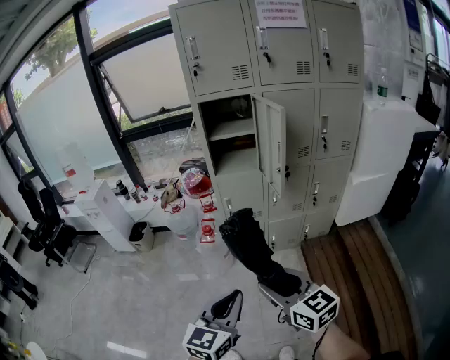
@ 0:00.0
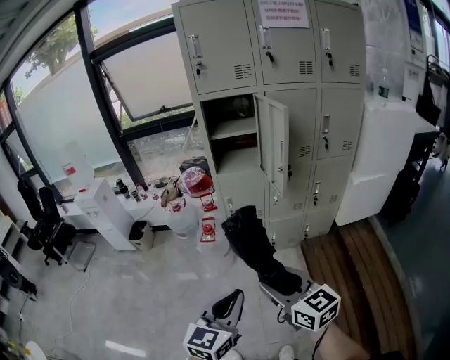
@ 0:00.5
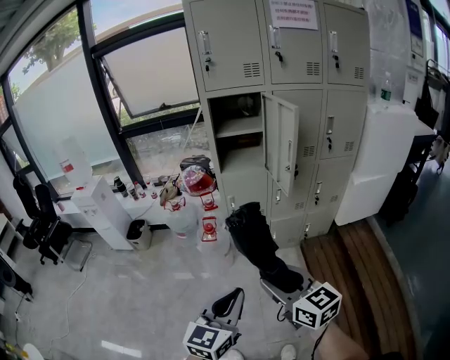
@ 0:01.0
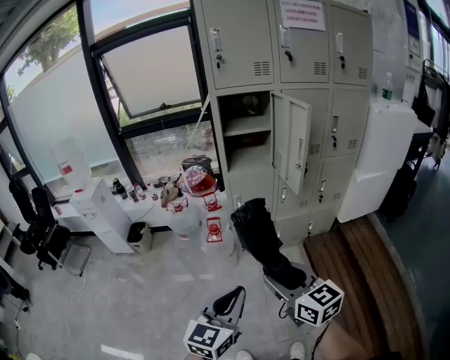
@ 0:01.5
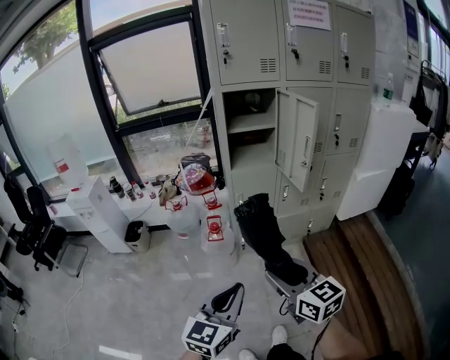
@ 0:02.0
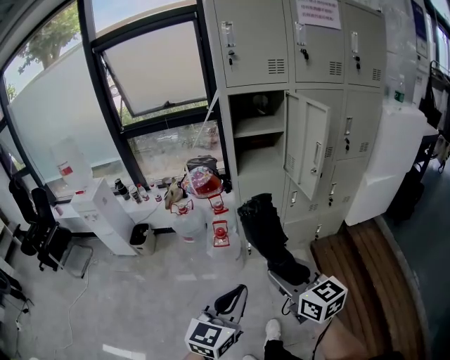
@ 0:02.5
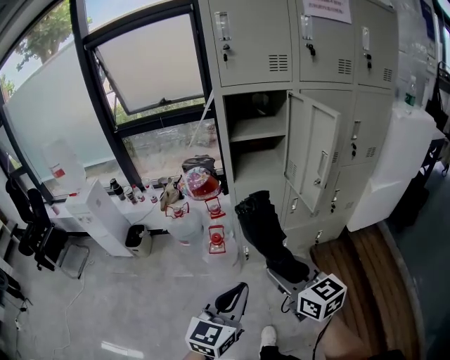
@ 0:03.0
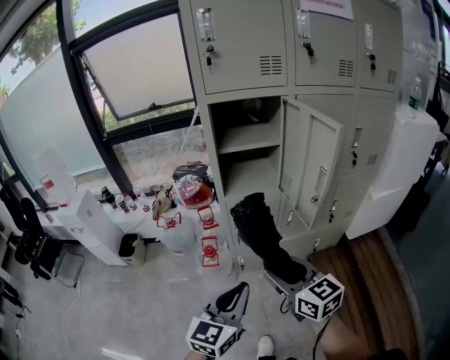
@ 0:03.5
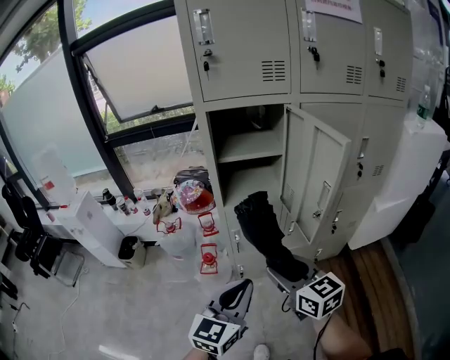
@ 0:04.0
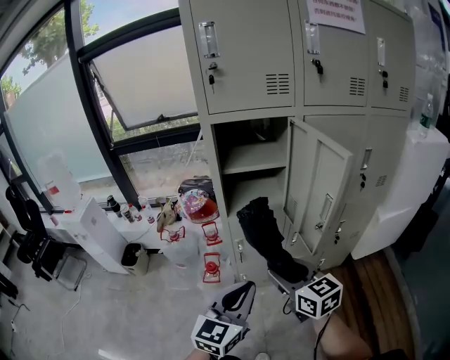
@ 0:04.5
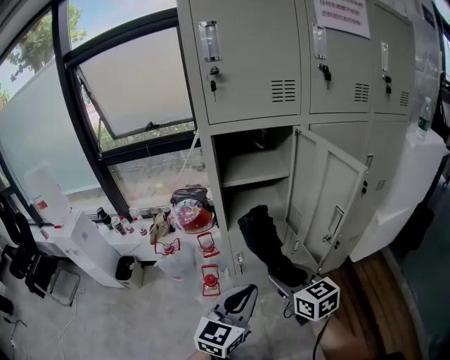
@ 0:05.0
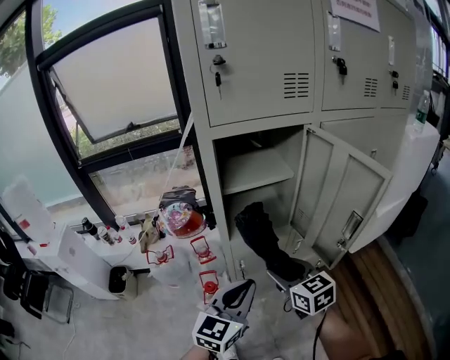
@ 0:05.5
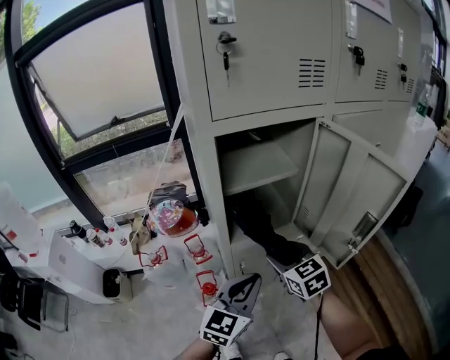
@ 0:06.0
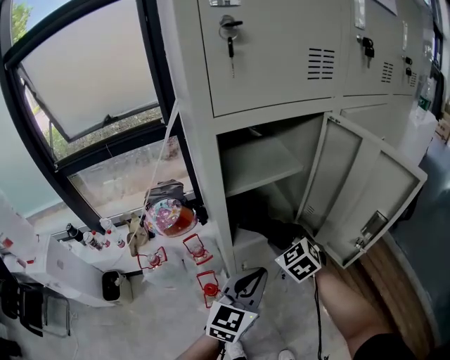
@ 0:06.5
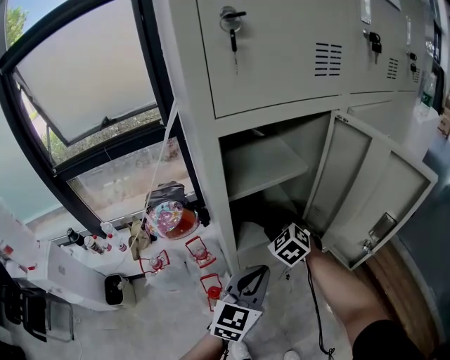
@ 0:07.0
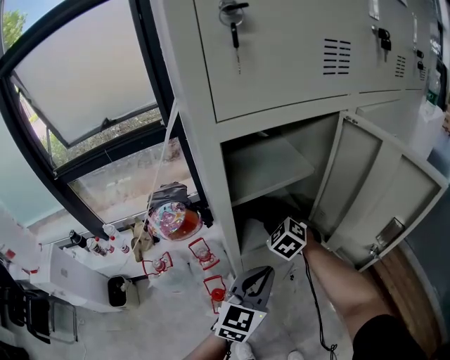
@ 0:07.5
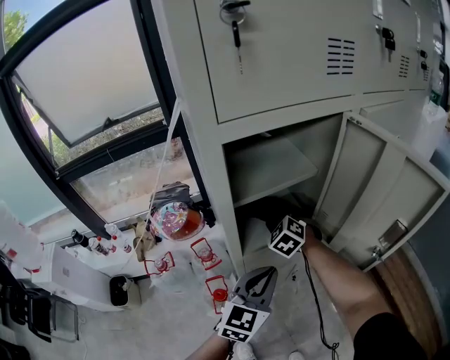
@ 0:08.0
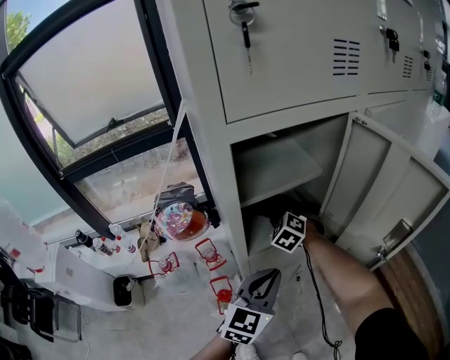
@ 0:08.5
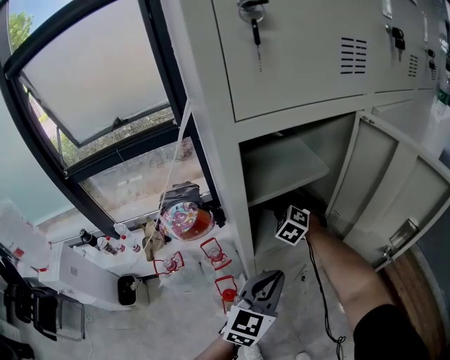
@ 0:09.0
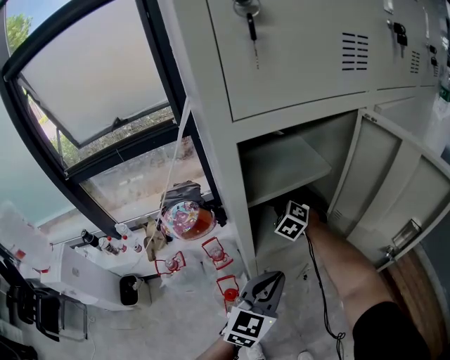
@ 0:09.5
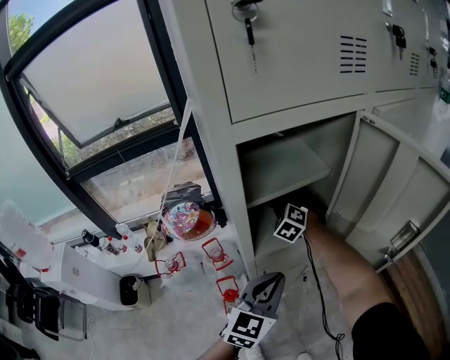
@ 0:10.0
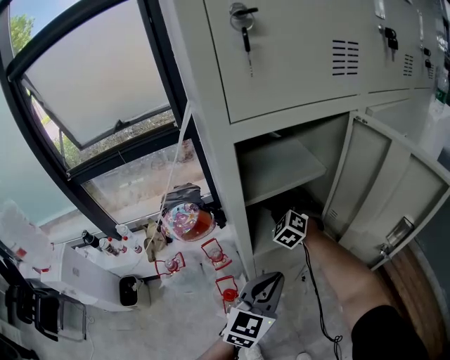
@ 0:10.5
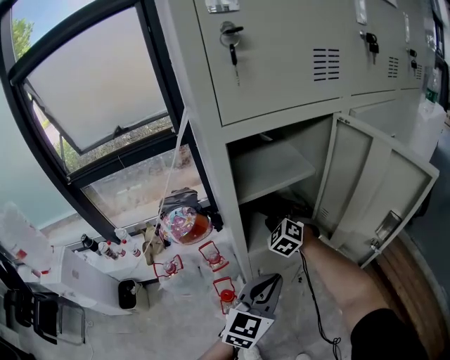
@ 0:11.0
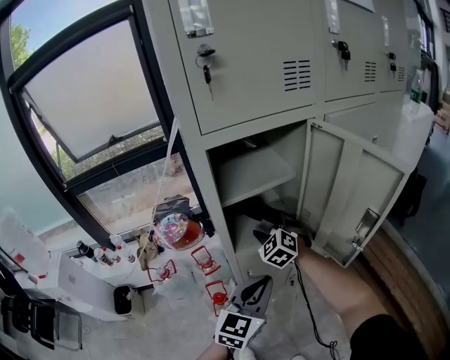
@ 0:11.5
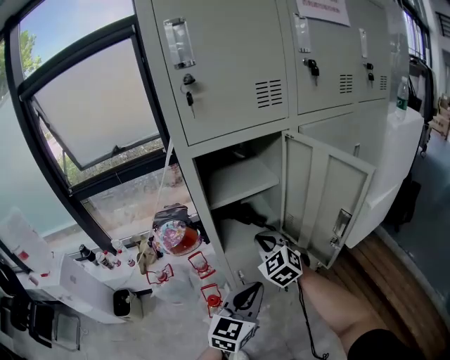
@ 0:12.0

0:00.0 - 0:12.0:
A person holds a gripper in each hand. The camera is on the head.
0:00.0 - 0:02.0: Both grippers travel together to the left, about 15 cm.
0:02.0 - 0:04.0: Both grippers travel together forward, approximately 25 cm.
0:04.0 - 0:06.0: Both grippers travel together forward, roughly 20 cm. The right gripper swivels approximately 20 degrees.
0:06.0 - 0:08.0: The right gripper travels forward by roughly 20 cm, and rotates approximately 40 degrees. The left gripper is displaced forward by approximately 5 cm.
0:08.0 - 0:10.0: The right gripper goes roughly 5 cm forward.
0:10.0 - 0:12.0: The left gripper heads backward and to the right, covering roughly 10 cm. The right gripper moves backward and upward, some 20 cm, rotates some 30 degrees, and closes its fingers.

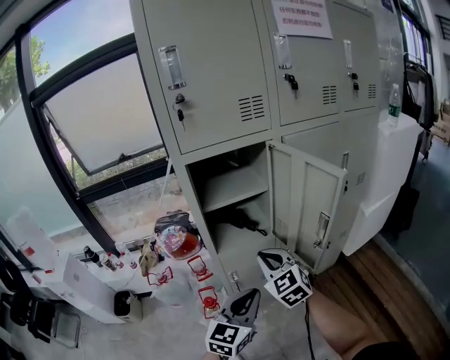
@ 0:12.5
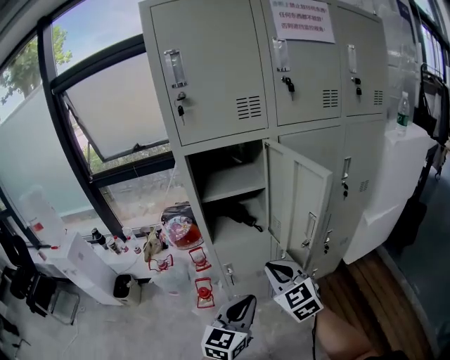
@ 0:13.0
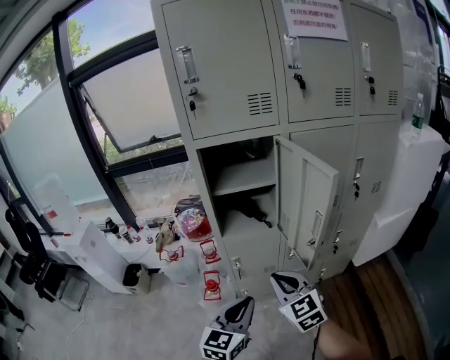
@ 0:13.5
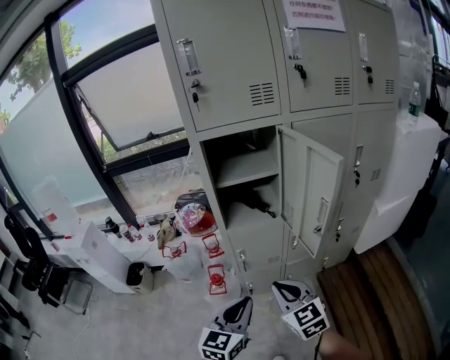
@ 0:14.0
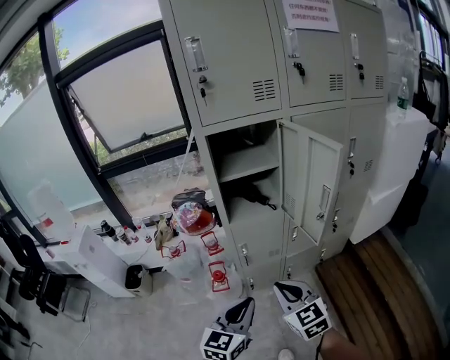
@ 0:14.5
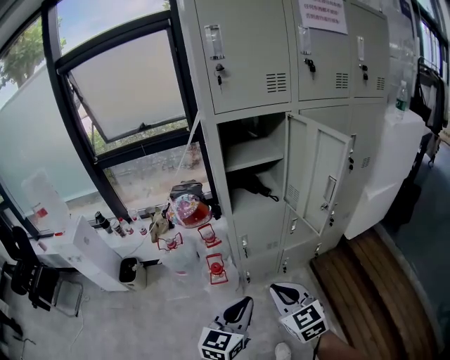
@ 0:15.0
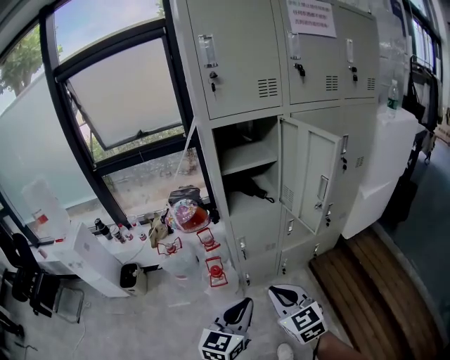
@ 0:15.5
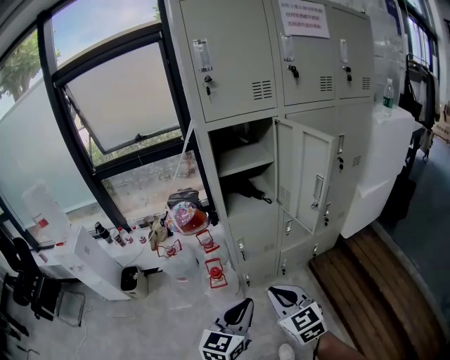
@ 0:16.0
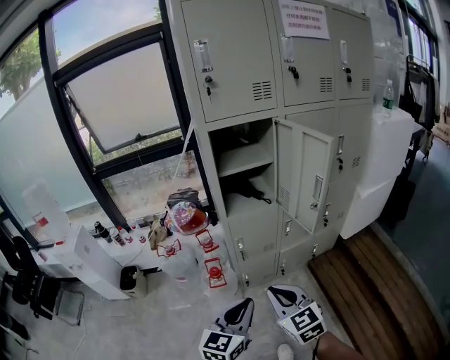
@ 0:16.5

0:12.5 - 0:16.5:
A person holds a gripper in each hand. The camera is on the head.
0:12.5 - 0:14.5: The right gripper moves backward, roughly 20 cm; the left gripper shifts some 15 cm backward.
0:14.5 - 0:16.5: Both grippers travel together backward, approximately 5 cm.

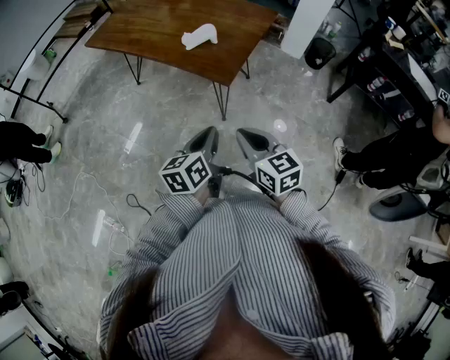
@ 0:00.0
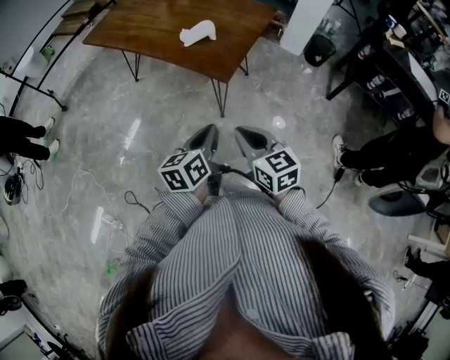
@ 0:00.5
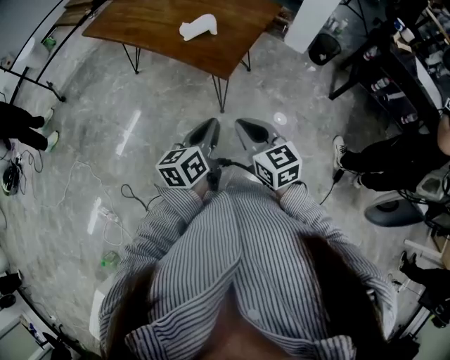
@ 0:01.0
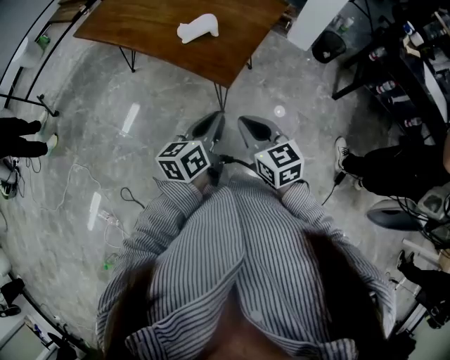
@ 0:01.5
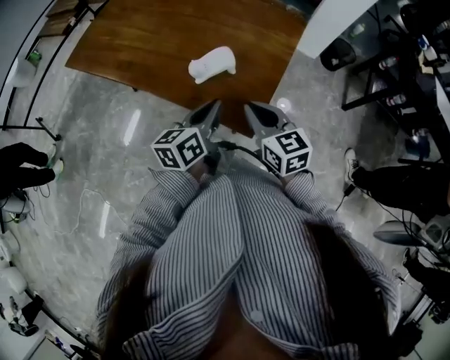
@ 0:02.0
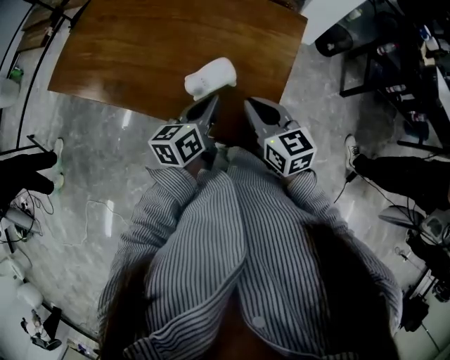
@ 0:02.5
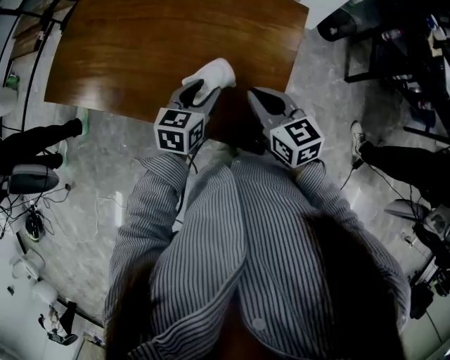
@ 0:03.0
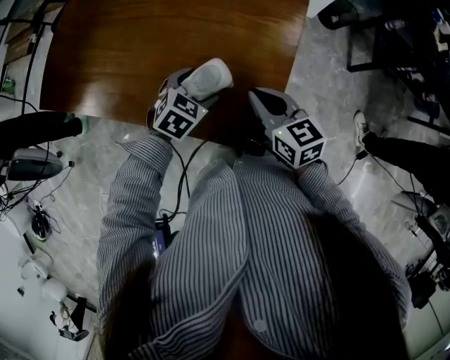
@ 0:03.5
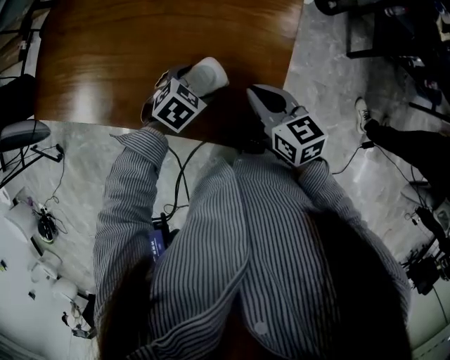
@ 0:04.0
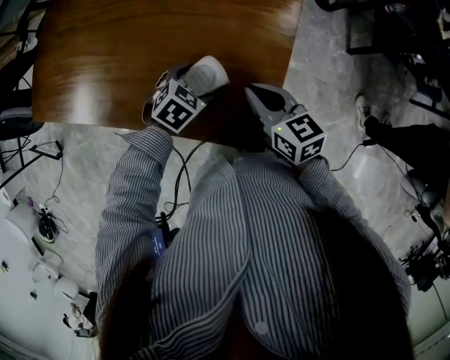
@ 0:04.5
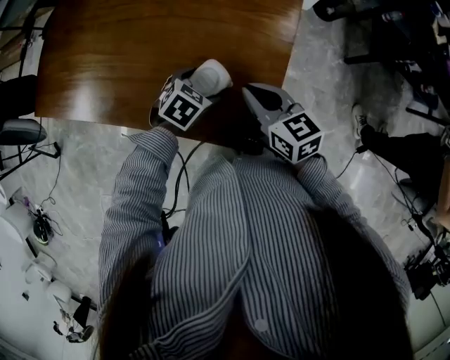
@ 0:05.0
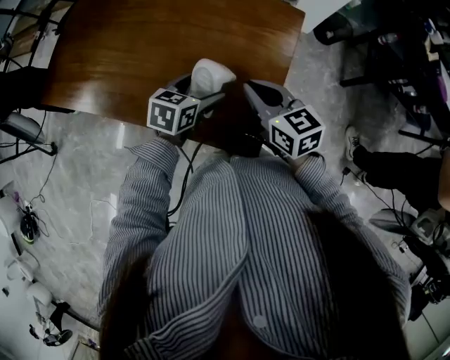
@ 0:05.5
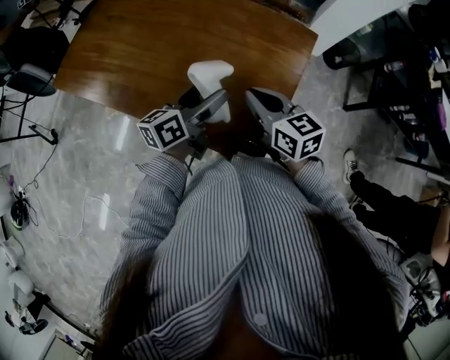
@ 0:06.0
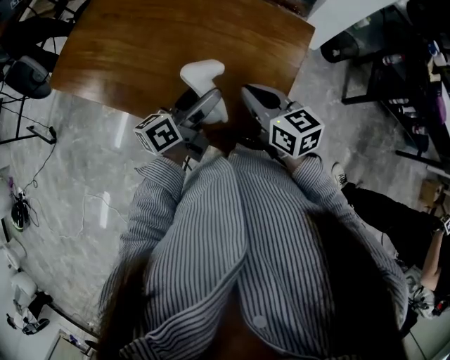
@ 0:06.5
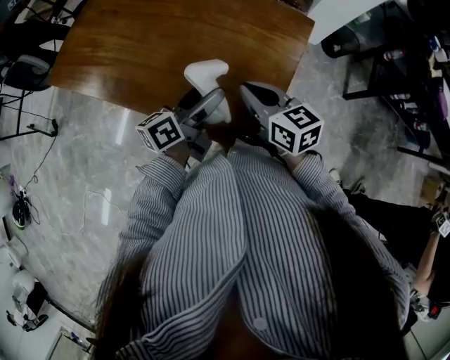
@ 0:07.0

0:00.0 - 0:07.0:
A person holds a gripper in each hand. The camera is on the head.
0:00.0 - 0:02.0: The grippers both shift forward by about 35 cm.
0:02.0 - 0:03.5: The right gripper travels forward by approximately 15 cm; the left gripper heads forward and downward, covering some 20 cm, tilts its fingers some 40 degrees downward, and opens its fingers.
0:03.5 - 0:05.0: The grippers make only small movements.
0:05.0 - 0:07.0: The right gripper ends up about 5 cm from where it was. The left gripper goes about 15 cm upward, and points its fingers about 60 degrees further upward.

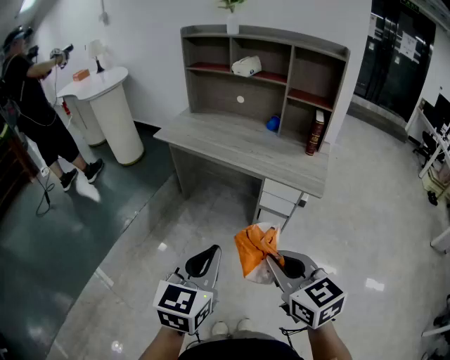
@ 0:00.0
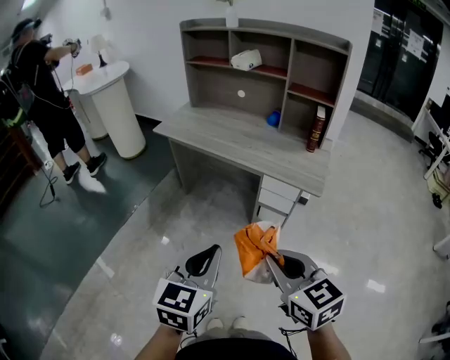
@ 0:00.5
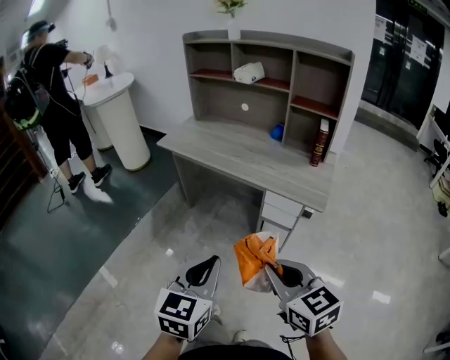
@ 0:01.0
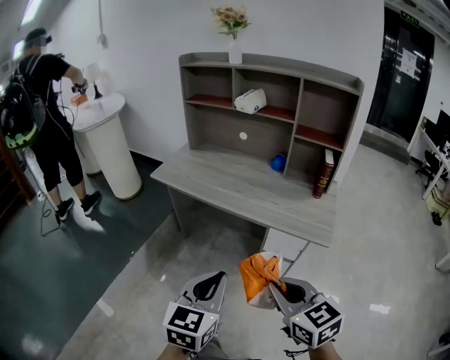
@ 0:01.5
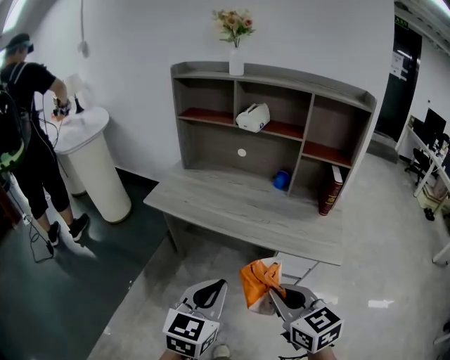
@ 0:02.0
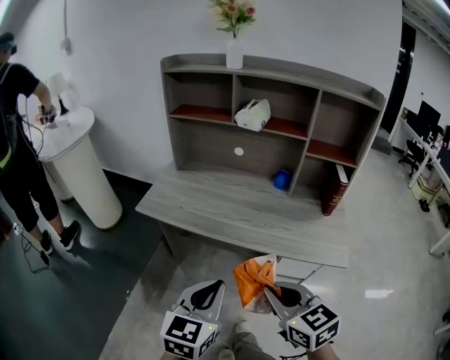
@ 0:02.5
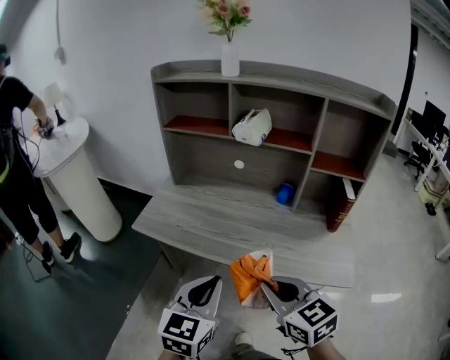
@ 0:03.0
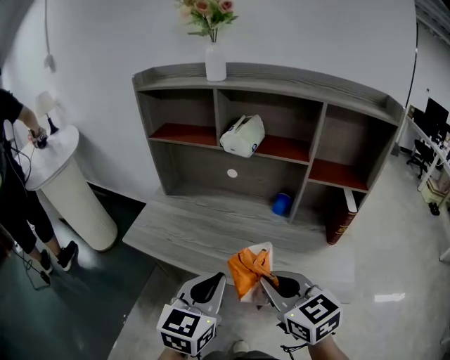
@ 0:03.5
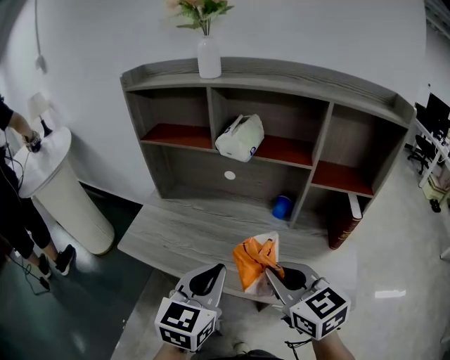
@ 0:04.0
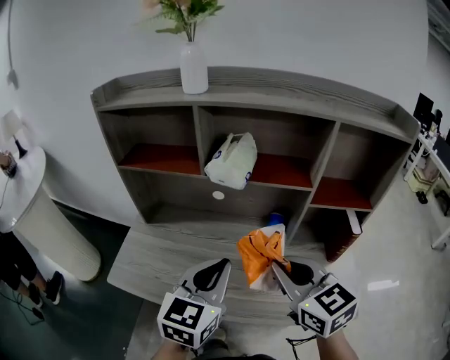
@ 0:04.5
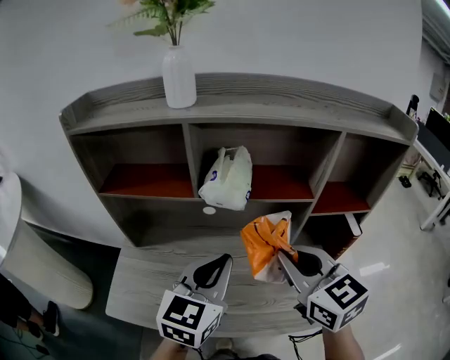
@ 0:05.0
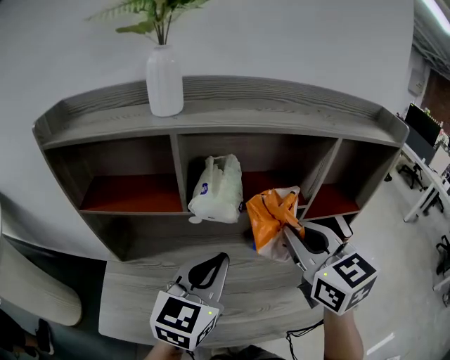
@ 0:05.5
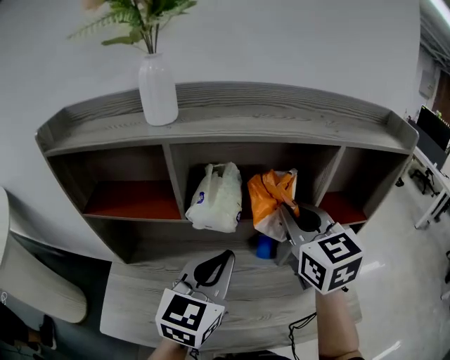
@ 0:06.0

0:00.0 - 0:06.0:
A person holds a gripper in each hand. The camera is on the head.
0:00.0 - 0:02.0: The two grippers go some 25 cm forward.
0:02.0 - 0:04.0: Both grippers travel together forward, some 30 cm.
0:04.0 - 0:06.0: The right gripper shifts by approximately 30 cm, and changes its angle by some 30 degrees, while the left gripper shifts by approximately 25 cm, and changes its angle by roughly 20 degrees.
